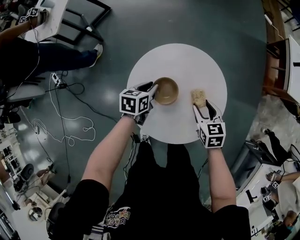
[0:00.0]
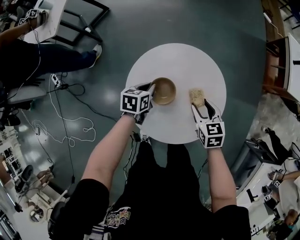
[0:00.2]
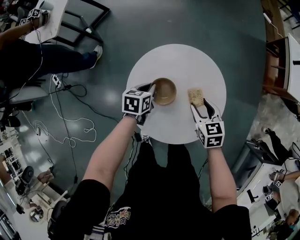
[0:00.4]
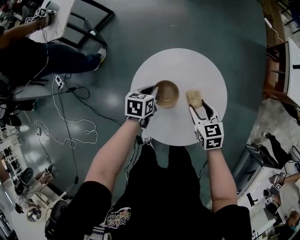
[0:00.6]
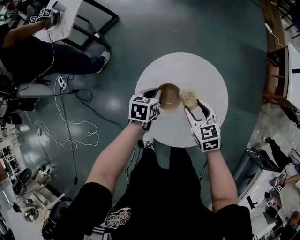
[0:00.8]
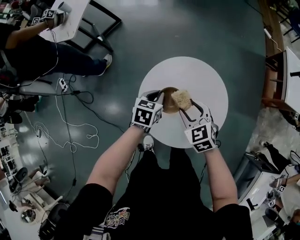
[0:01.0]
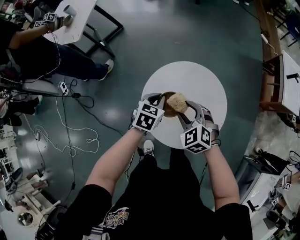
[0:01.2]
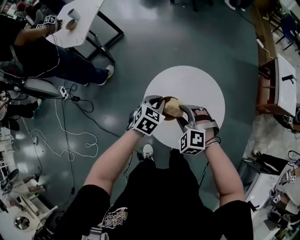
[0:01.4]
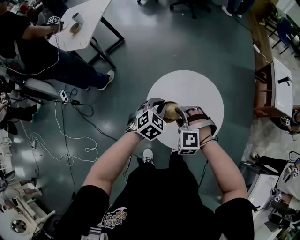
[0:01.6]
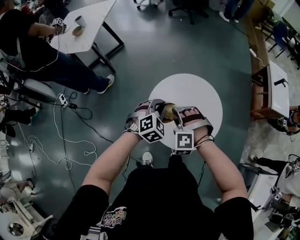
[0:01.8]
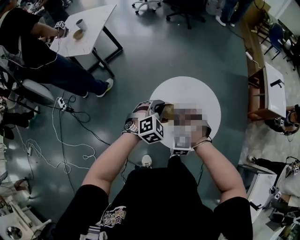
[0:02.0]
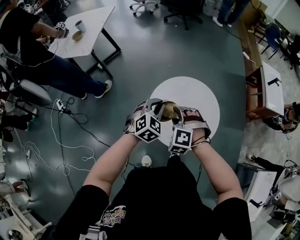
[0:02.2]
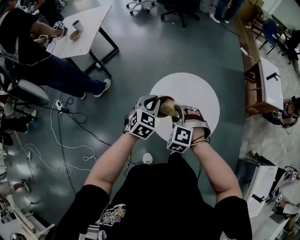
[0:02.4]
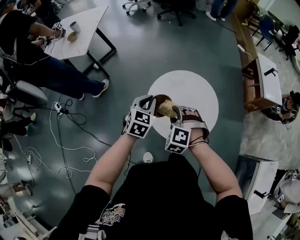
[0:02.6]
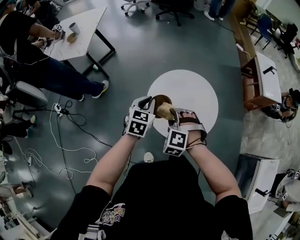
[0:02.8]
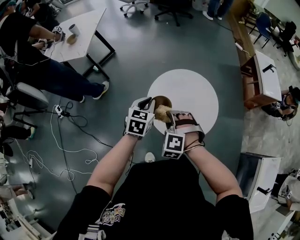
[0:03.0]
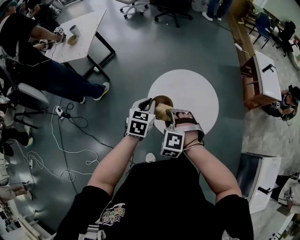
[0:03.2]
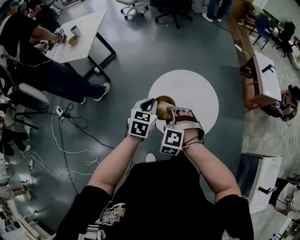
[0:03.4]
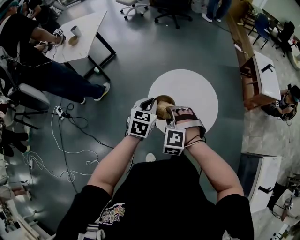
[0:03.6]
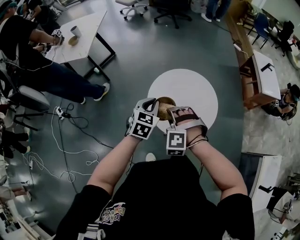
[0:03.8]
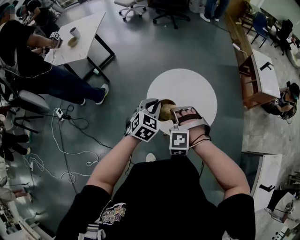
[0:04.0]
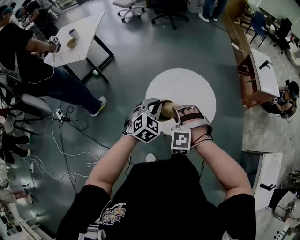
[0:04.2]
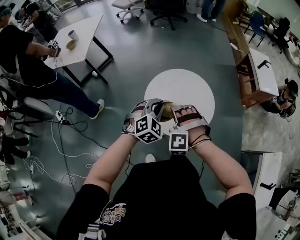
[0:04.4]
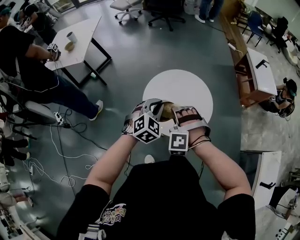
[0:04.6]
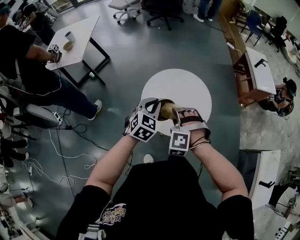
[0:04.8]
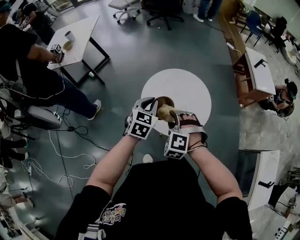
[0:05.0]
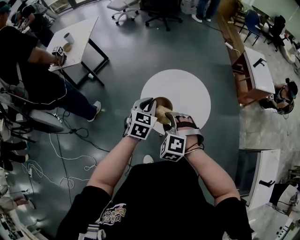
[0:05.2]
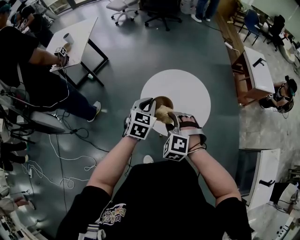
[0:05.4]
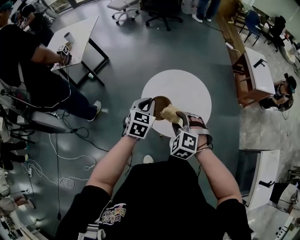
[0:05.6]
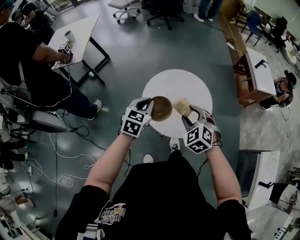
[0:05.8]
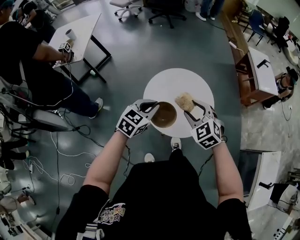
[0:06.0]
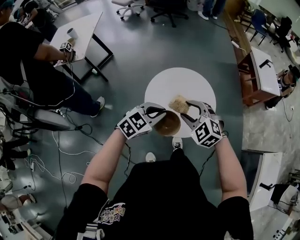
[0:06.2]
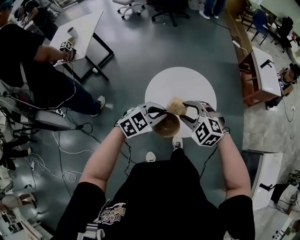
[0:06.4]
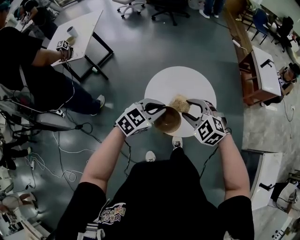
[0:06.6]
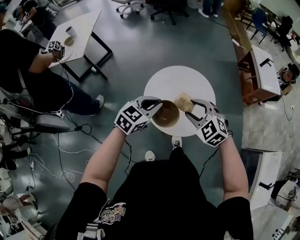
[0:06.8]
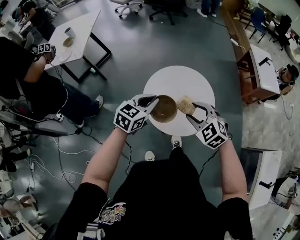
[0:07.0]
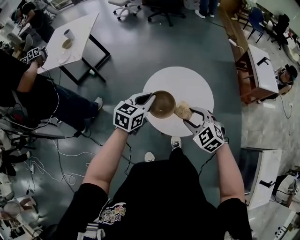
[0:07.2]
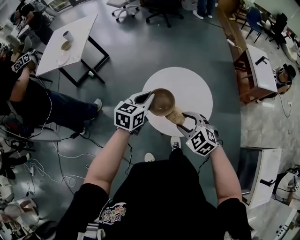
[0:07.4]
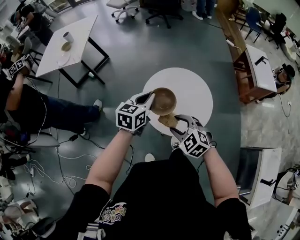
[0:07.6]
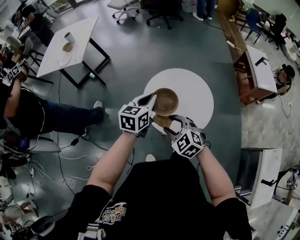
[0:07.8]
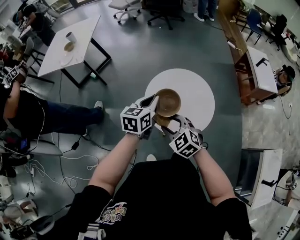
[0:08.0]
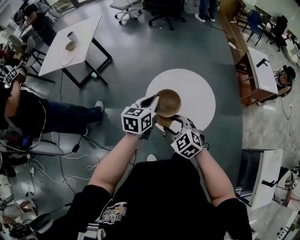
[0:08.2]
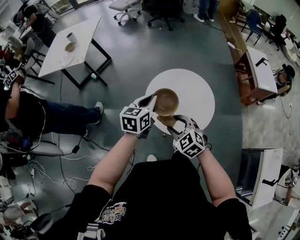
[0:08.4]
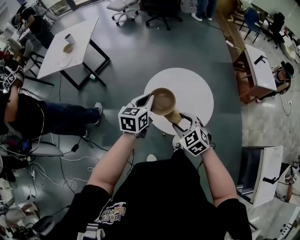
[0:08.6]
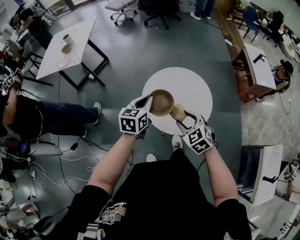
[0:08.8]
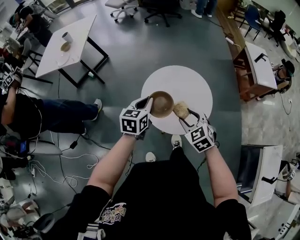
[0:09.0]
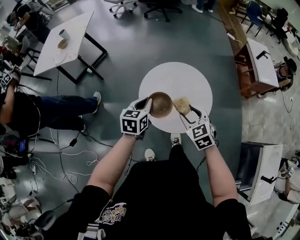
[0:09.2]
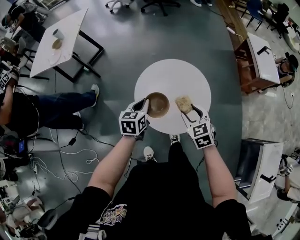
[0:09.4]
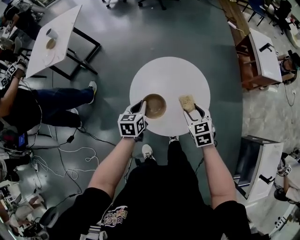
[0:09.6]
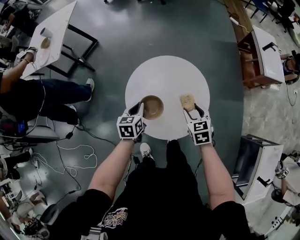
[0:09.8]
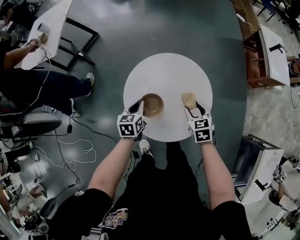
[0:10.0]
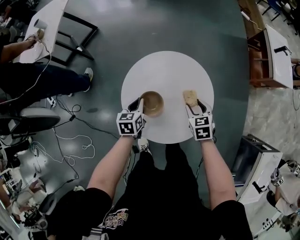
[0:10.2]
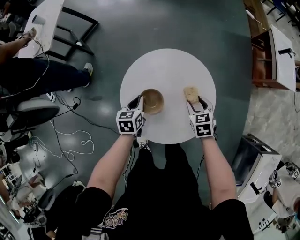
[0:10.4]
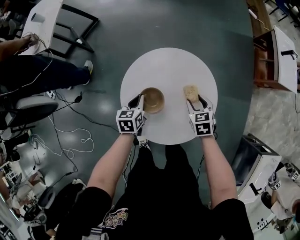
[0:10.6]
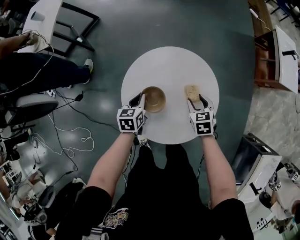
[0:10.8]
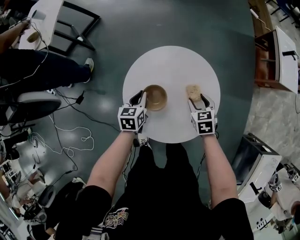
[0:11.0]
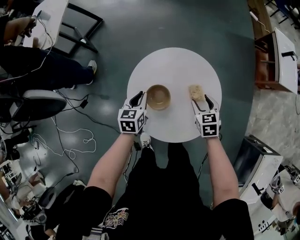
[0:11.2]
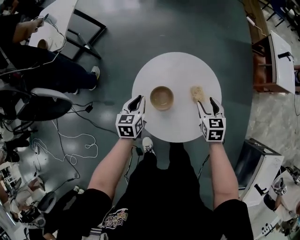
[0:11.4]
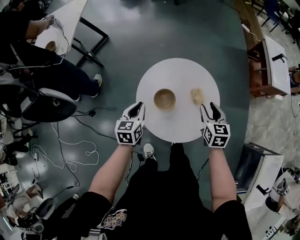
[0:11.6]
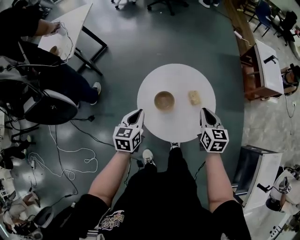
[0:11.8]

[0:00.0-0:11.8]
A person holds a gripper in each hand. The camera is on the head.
0:00.0 to 0:01.4: The right gripper shifts about 20 cm to the left and upward, and rotates around the line of its fingers by approximately 70 degrees, counterclockwise from behind. Meanwhile the left gripper travels upward by about 15 cm, and rotates approximately 30 degrees.
0:01.4 to 0:03.0: The left gripper goes roughly 10 cm upward, to the left and backward; the right gripper moves backward, to the left and upward, roughly 15 cm.
0:03.0 to 0:04.4: The left gripper is displaced to the right by about 5 cm, and rolls clockwise, seen from behind, by some 40 degrees.
0:04.4 to 0:06.0: The right gripper heads to the right, covering roughly 5 cm, and rolls clockwise, seen from behind, by approximately 50 degrees. Meanwhile the left gripper swivels about 40 degrees.
0:06.0 to 0:07.4: The right gripper heads backward, covering some 5 cm.
0:07.4 to 0:08.8: The right gripper travels to the left and back again, about 10 cm each way.
0:08.8 to 0:10.4: The left gripper travels downward by some 25 cm, and rotates roughly 20 degrees; the right gripper shifts about 30 cm downward, to the right and forward, and rotates about 30 degrees.
0:10.4 to 0:11.8: The left gripper shifts roughly 20 cm upward, backward and to the left. Meanwhile the right gripper goes roughly 15 cm upward, rotates some 30 degrees, and closes up.

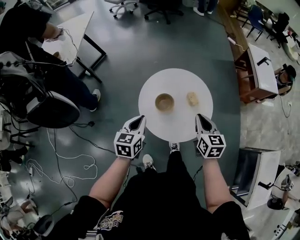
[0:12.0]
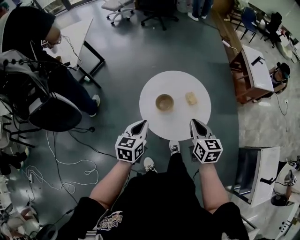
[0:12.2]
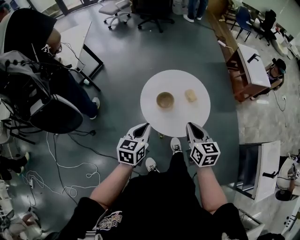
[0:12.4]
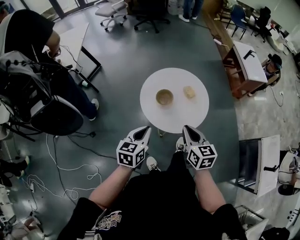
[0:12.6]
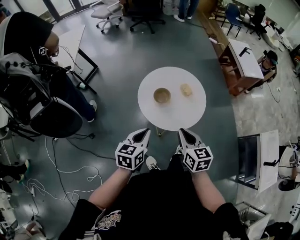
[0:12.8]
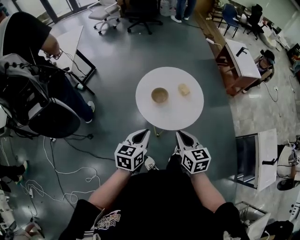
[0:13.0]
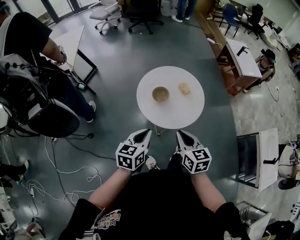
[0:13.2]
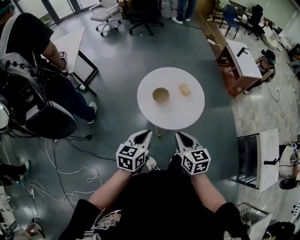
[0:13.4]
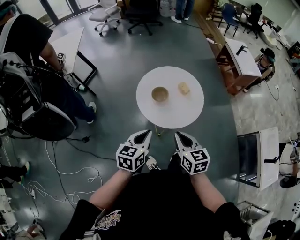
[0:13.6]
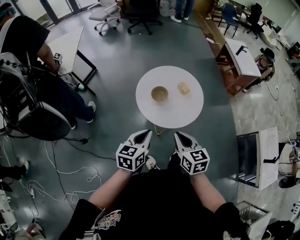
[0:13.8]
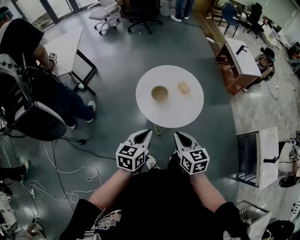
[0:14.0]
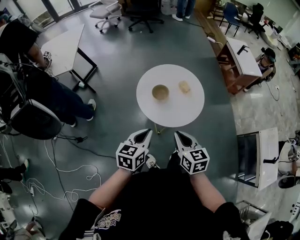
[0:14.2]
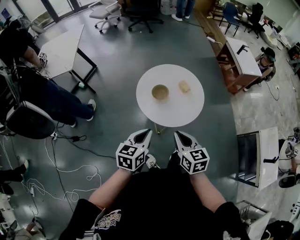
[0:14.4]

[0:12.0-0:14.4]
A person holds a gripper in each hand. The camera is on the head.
0:12.0 to 0:13.2: The right gripper moves backward and to the left, some 20 cm. The left gripper shifts some 15 cm backward.
0:13.2 to 0:14.4: The grippers move only a little.

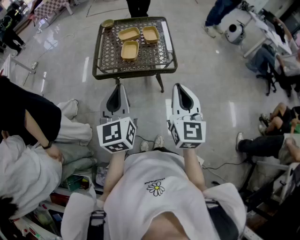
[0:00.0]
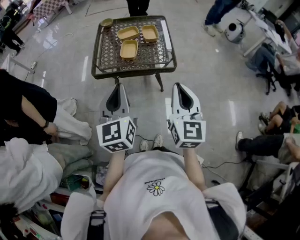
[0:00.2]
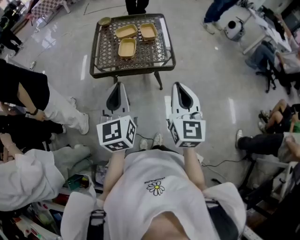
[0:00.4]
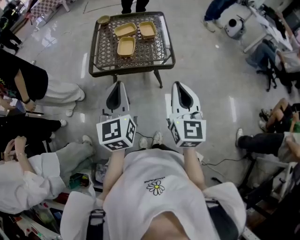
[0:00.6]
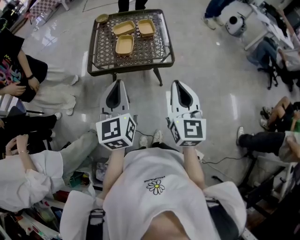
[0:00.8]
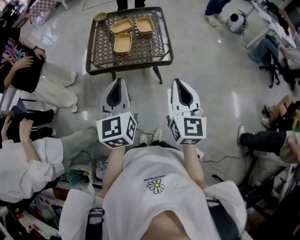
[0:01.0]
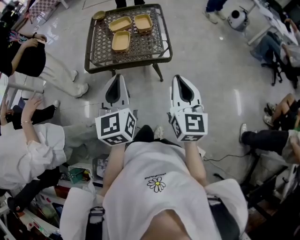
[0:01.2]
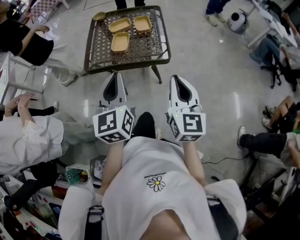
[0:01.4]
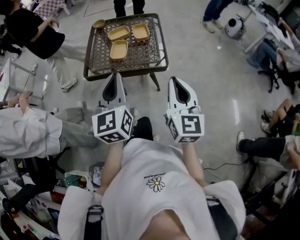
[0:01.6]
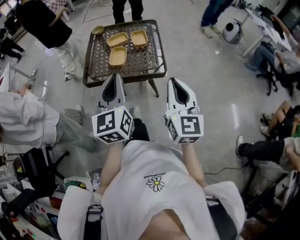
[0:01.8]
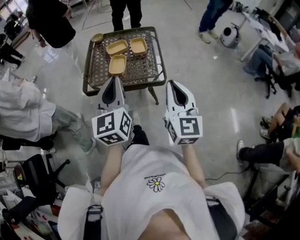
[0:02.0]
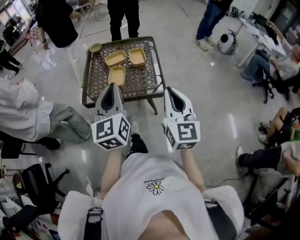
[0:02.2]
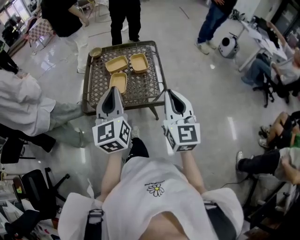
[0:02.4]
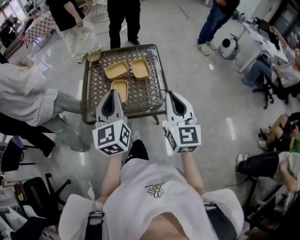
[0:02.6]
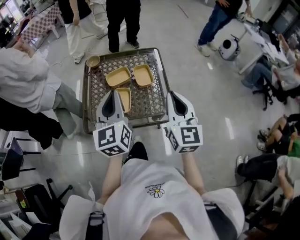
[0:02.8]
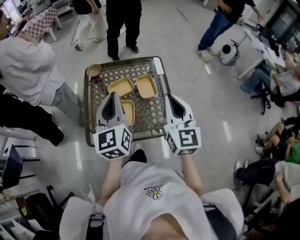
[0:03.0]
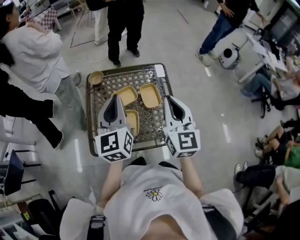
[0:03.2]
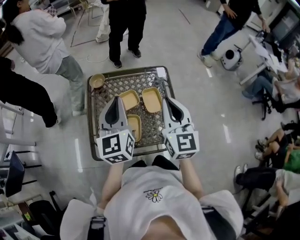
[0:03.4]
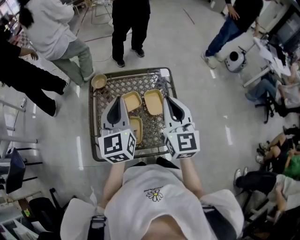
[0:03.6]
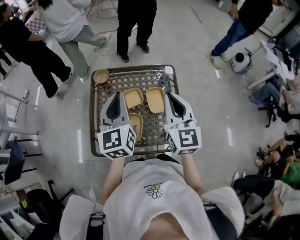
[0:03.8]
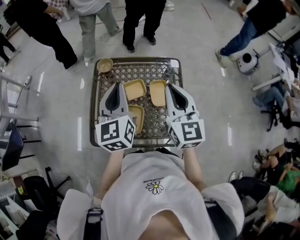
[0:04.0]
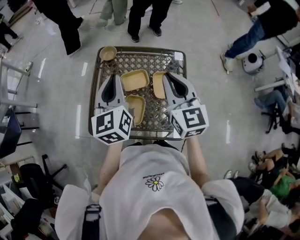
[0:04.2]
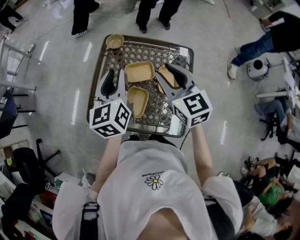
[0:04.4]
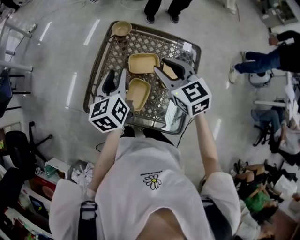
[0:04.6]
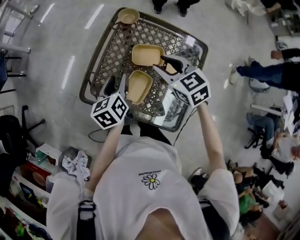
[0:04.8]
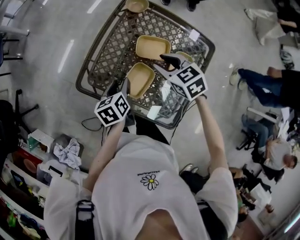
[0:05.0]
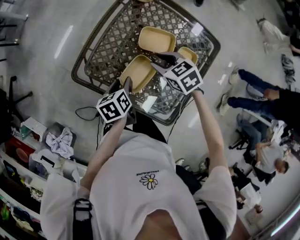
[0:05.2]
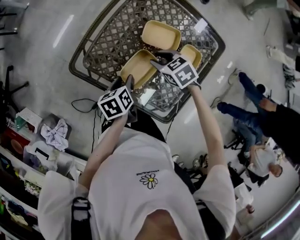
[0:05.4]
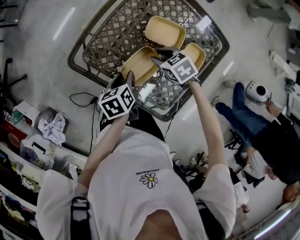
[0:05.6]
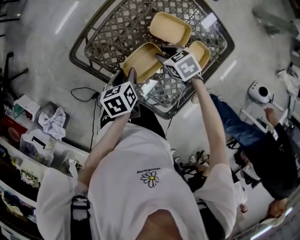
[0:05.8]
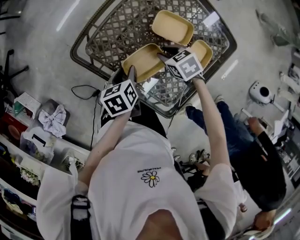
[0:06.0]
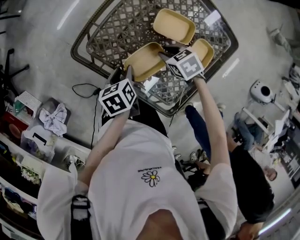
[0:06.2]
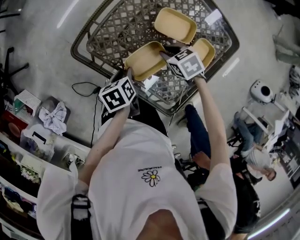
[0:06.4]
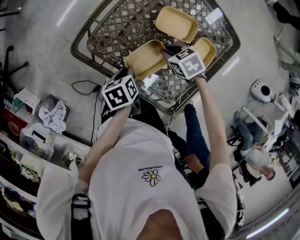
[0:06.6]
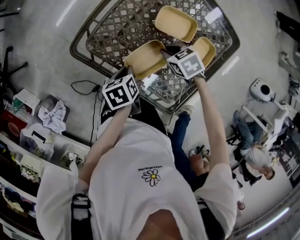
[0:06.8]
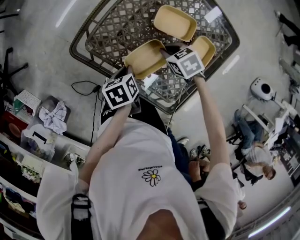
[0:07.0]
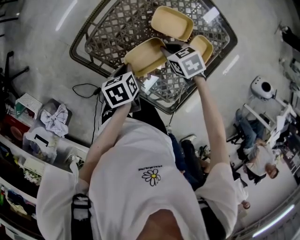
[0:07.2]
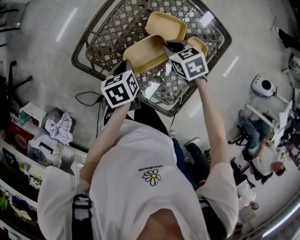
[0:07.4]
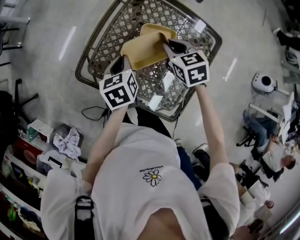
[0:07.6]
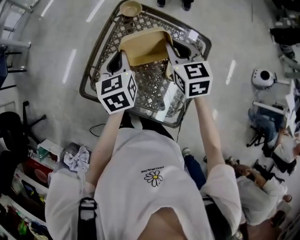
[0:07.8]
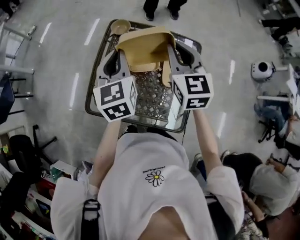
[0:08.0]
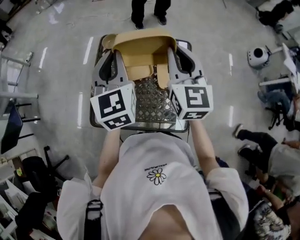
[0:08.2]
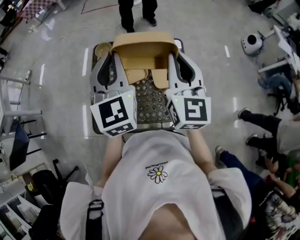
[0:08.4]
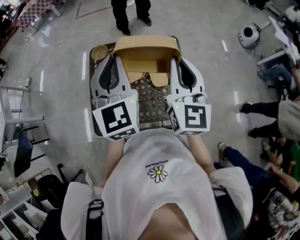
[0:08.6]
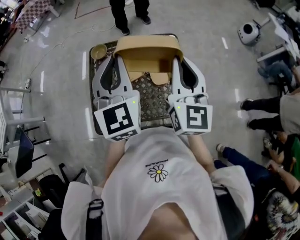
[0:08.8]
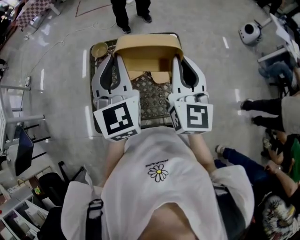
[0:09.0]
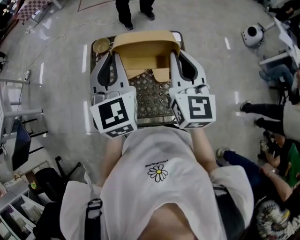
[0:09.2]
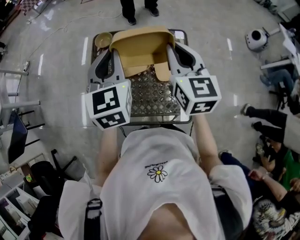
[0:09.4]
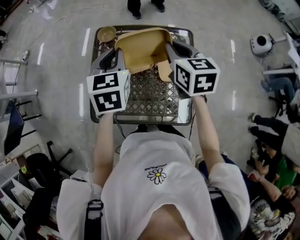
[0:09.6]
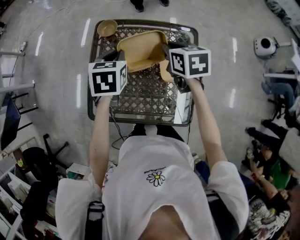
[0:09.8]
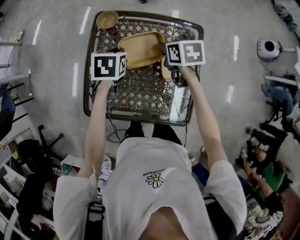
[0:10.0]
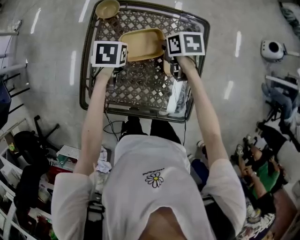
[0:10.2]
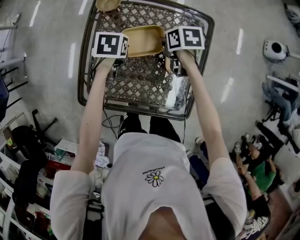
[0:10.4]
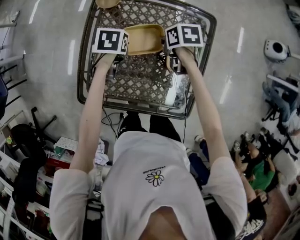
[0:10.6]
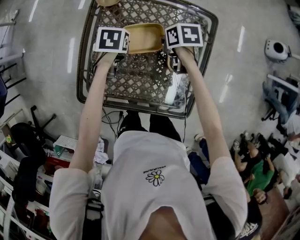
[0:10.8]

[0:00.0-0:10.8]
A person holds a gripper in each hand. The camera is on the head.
0:00.0 to 0:01.6: The two grippers go approximately 5 cm to the right.
0:01.6 to 0:03.0: The grippers both shift forward by approximately 35 cm.
0:03.0 to 0:04.6: The left gripper changes place by roughly 15 cm, changes its angle by about 30 degrees, and opens its fingers. The right gripper changes place by about 25 cm, changes its angle by roughly 50 degrees, and opens.
0:04.6 to 0:06.2: The two grippers go about 30 cm downward. The right gripper points its fingers some 40 degrees further downward, while the left gripper tilts its fingers about 40 degrees downward.
0:06.2 to 0:07.8: Both grippers move upward, roughly 25 cm. The left gripper turns by some 40 degrees, and closes its fingers; the right gripper tips its fingers upward by roughly 30 degrees.
0:07.8 to 0:09.2: The left gripper goes about 20 cm upward, and changes its angle by about 40 degrees, while the right gripper ends up about 25 cm from where it was, and changes its angle by roughly 50 degrees.
0:09.2 to 0:10.8: The right gripper goes approximately 40 cm downward and forward, and points its fingers approximately 60 degrees further downward. The left gripper heads downward, covering roughly 40 cm, and angles its fingers downward, by approximately 60 degrees.
